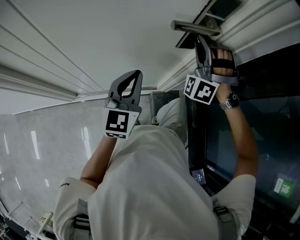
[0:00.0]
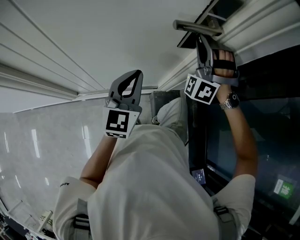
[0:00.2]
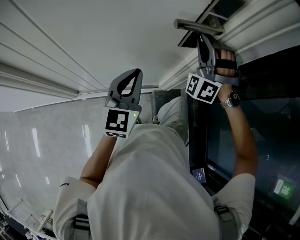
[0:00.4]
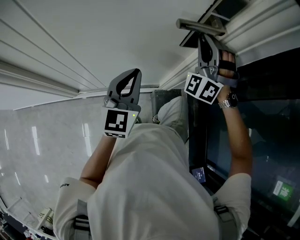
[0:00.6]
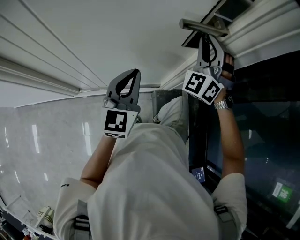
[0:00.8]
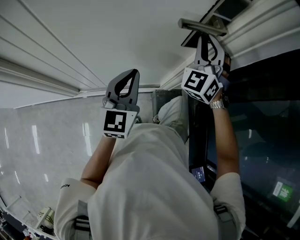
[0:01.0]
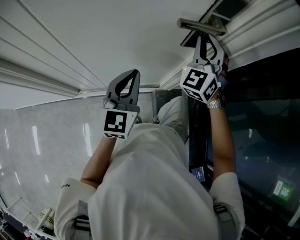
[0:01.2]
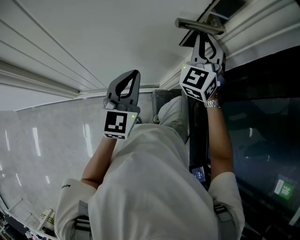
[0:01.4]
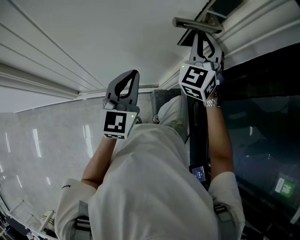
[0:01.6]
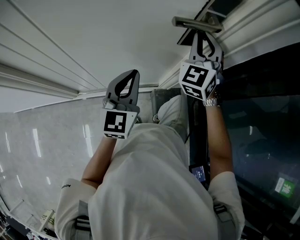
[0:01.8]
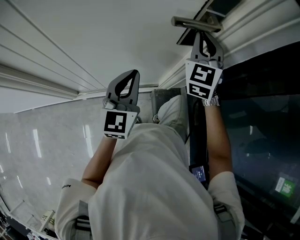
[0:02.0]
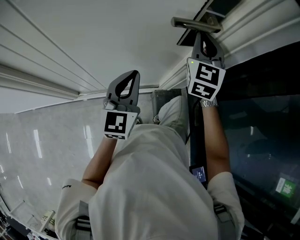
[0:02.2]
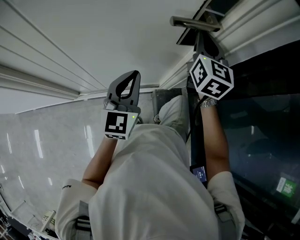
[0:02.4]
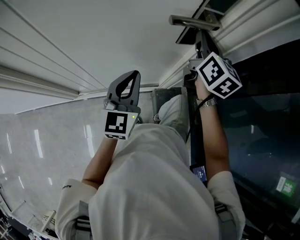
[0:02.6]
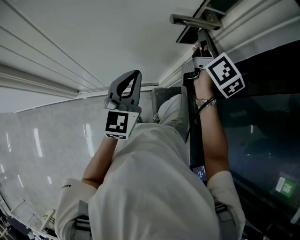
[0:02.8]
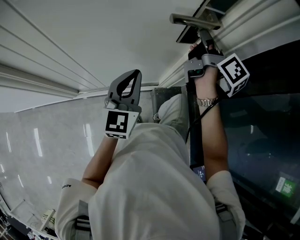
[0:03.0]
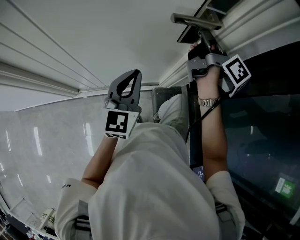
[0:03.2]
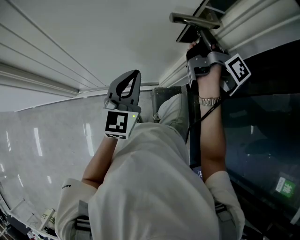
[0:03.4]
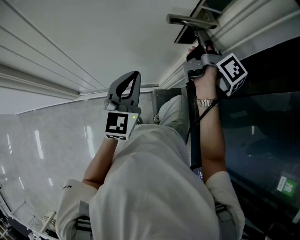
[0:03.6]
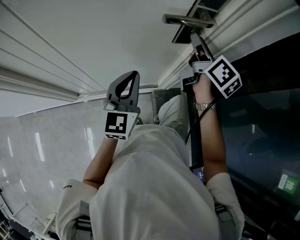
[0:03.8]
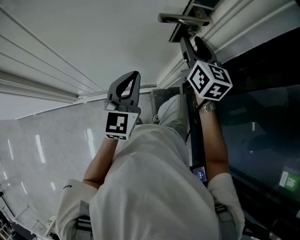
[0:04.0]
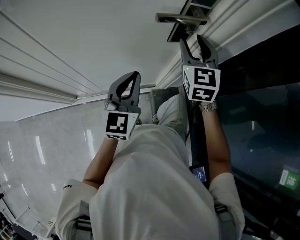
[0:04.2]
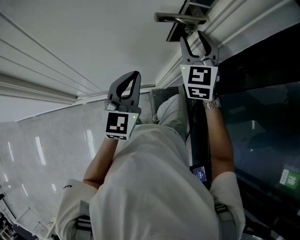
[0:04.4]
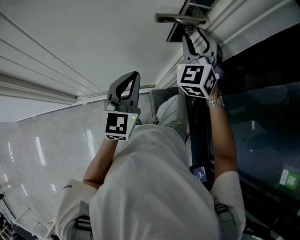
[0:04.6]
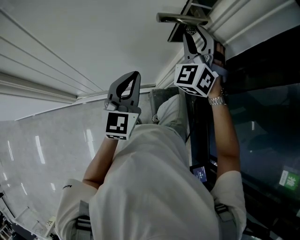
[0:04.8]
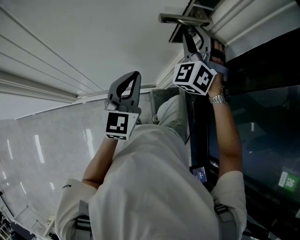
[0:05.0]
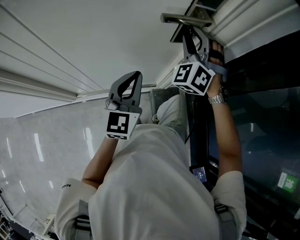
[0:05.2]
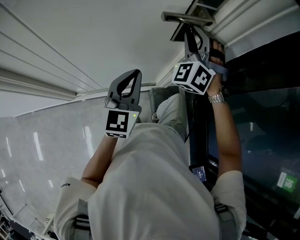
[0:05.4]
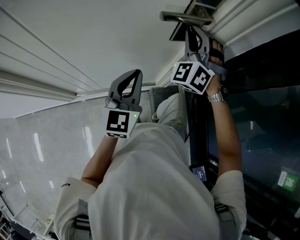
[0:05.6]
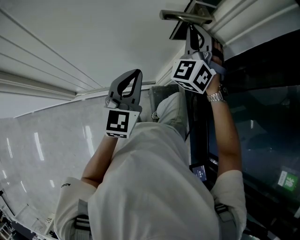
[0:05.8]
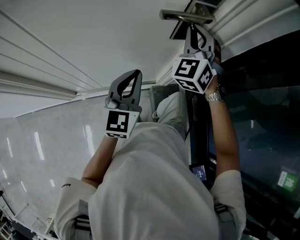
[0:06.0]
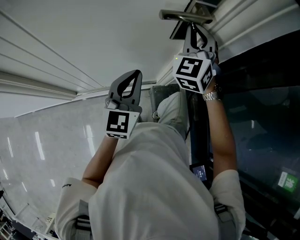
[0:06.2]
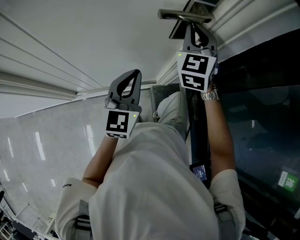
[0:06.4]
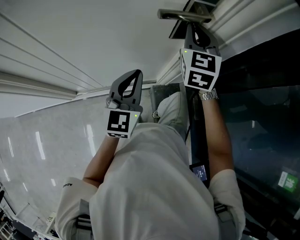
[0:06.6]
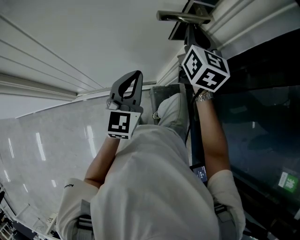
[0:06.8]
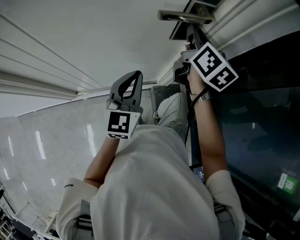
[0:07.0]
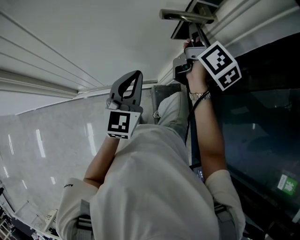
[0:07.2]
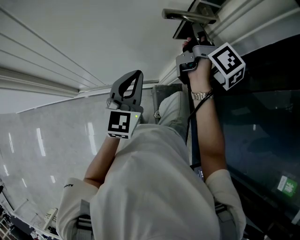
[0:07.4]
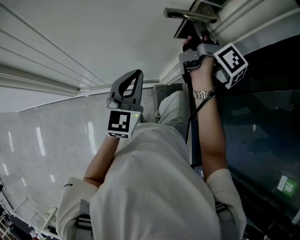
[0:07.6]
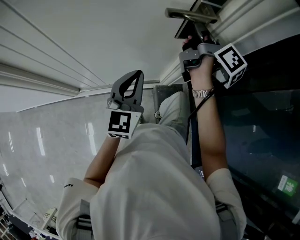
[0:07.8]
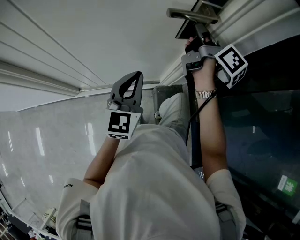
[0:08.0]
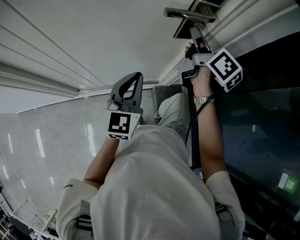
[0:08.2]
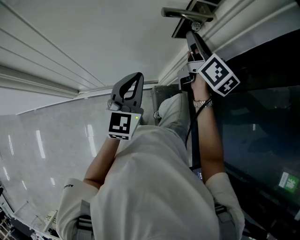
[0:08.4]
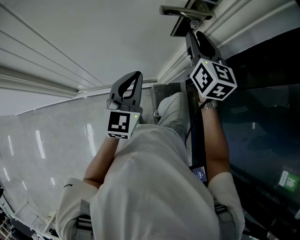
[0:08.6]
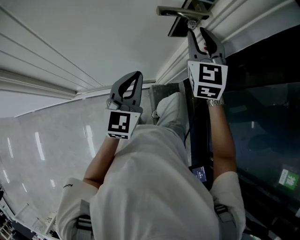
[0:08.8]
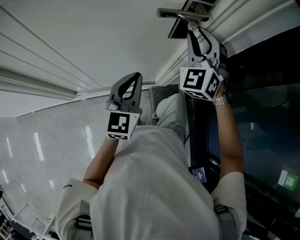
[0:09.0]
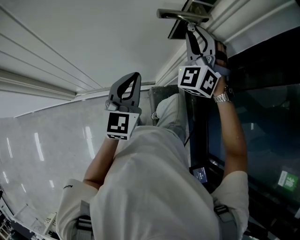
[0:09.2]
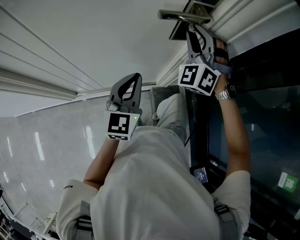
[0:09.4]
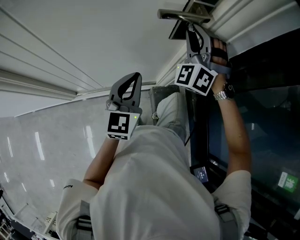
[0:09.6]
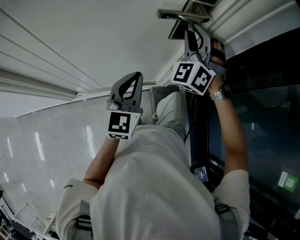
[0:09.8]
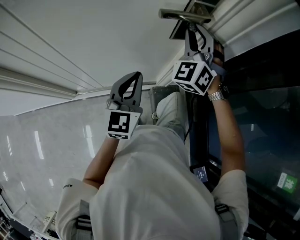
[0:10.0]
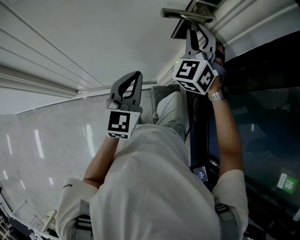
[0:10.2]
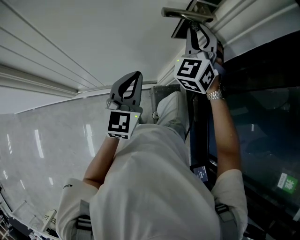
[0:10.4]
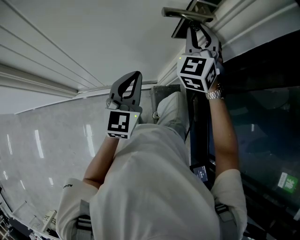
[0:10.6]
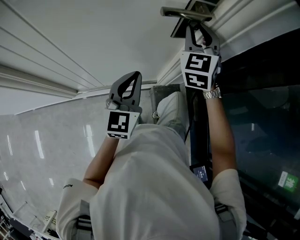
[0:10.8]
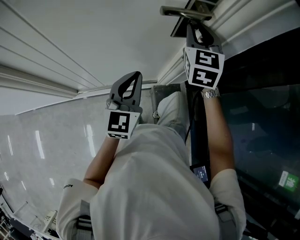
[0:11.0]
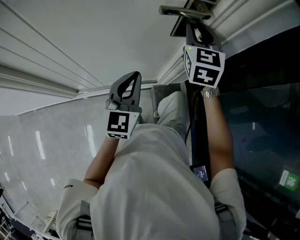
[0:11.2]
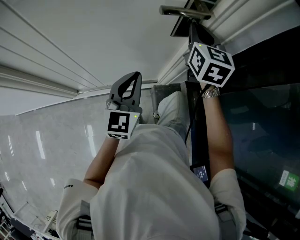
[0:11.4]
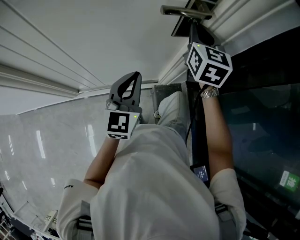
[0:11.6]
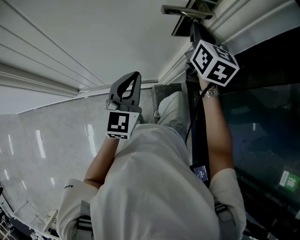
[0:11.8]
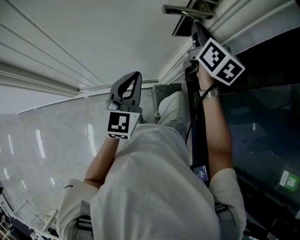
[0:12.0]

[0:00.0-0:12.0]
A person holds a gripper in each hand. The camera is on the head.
0:00.0 to 0:01.6: The right gripper rotates around the line of its fingers by roughly 50 degrees, clockwise from behind.
0:01.6 to 0:03.0: The right gripper rotates around the line of its fingers by roughly 100 degrees, clockwise from behind.
0:03.0 to 0:04.4: The right gripper rolls counterclockwise, seen from behind, by approximately 90 degrees, and opens its fingers.
0:04.4 to 0:06.0: The right gripper swivels approximately 20 degrees, and closes up.
0:06.0 to 0:07.6: The right gripper twists some 110 degrees clockwise, seen from behind.
0:07.6 to 0:09.0: The right gripper rotates around the line of its fingers by roughly 120 degrees, counterclockwise from behind.
0:09.0 to 0:10.4: The grippers move only a little.
0:10.4 to 0:12.0: The right gripper rotates around the line of its fingers by roughly 70 degrees, clockwise from behind.

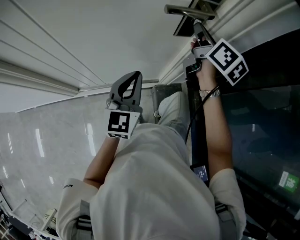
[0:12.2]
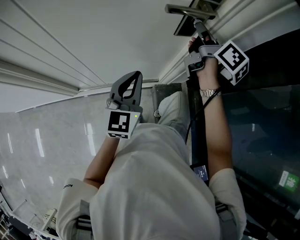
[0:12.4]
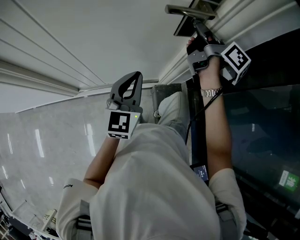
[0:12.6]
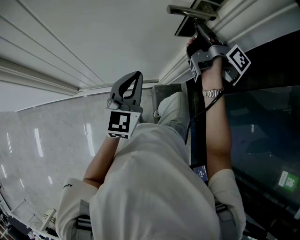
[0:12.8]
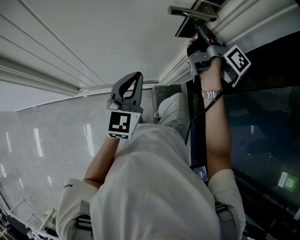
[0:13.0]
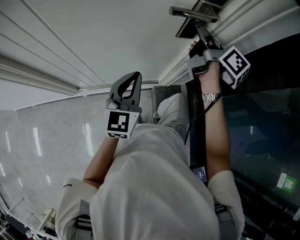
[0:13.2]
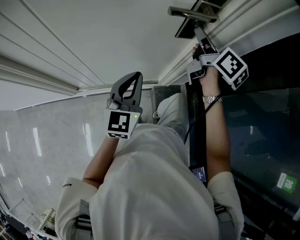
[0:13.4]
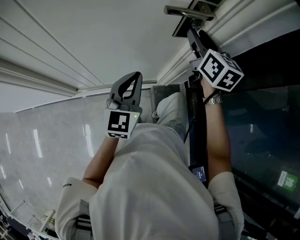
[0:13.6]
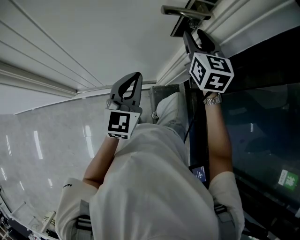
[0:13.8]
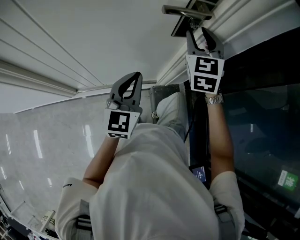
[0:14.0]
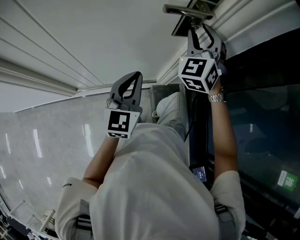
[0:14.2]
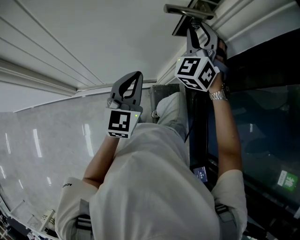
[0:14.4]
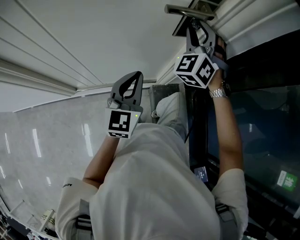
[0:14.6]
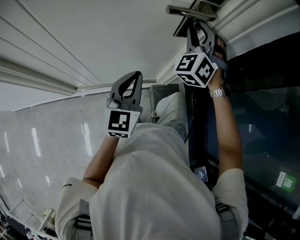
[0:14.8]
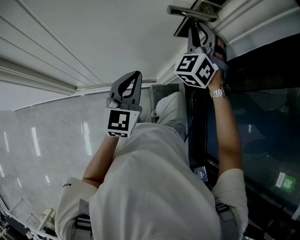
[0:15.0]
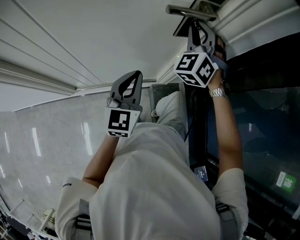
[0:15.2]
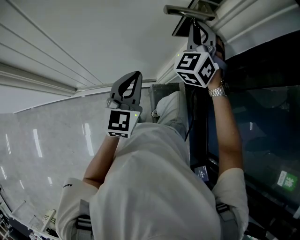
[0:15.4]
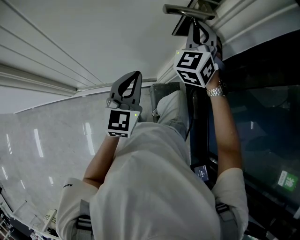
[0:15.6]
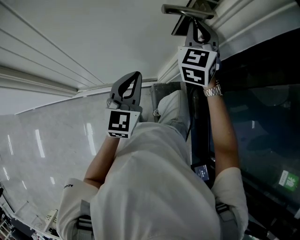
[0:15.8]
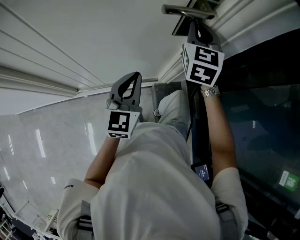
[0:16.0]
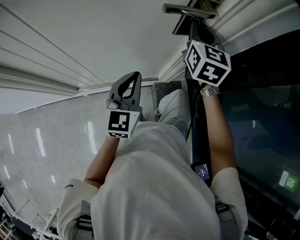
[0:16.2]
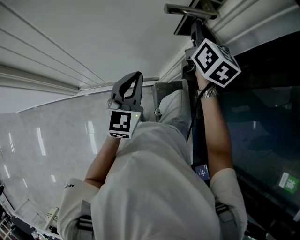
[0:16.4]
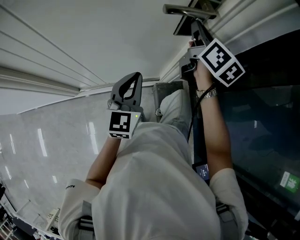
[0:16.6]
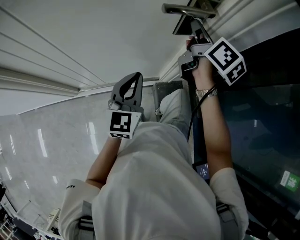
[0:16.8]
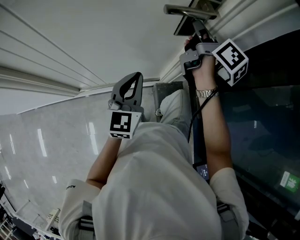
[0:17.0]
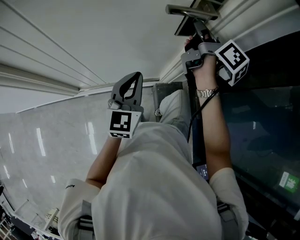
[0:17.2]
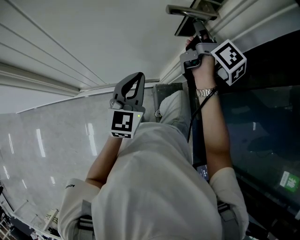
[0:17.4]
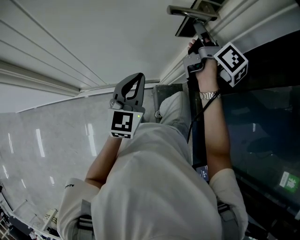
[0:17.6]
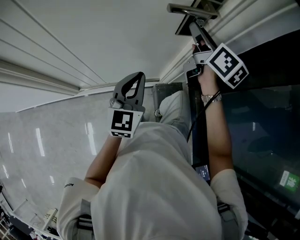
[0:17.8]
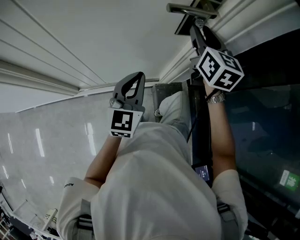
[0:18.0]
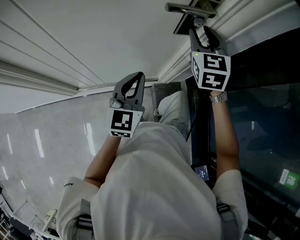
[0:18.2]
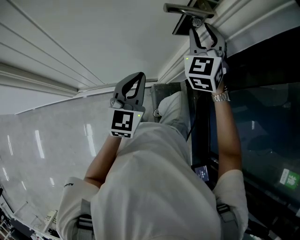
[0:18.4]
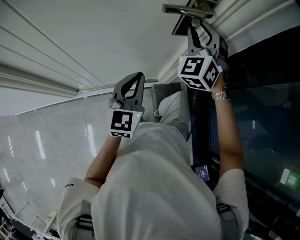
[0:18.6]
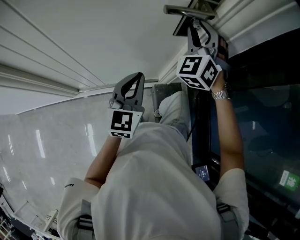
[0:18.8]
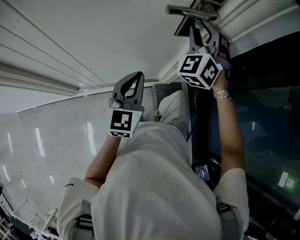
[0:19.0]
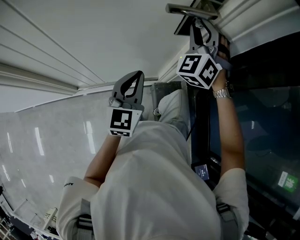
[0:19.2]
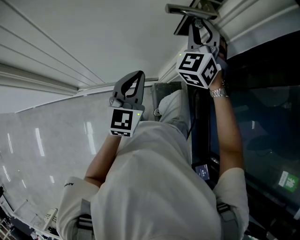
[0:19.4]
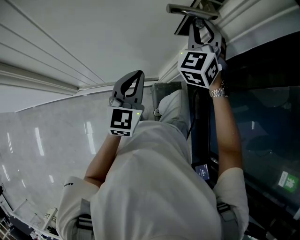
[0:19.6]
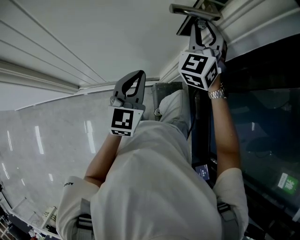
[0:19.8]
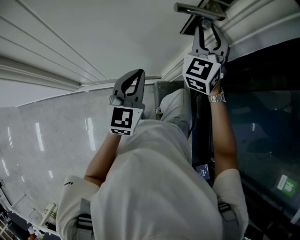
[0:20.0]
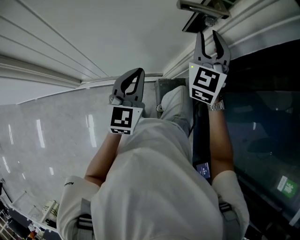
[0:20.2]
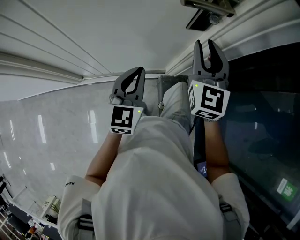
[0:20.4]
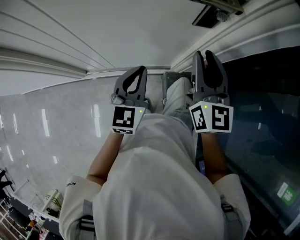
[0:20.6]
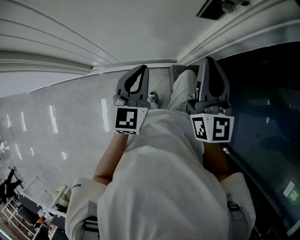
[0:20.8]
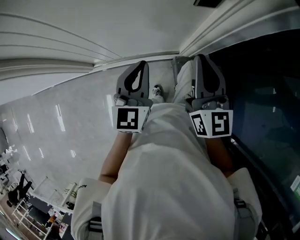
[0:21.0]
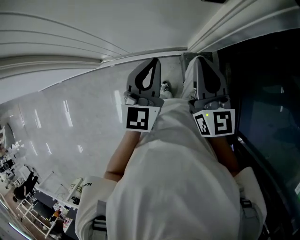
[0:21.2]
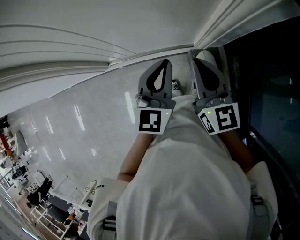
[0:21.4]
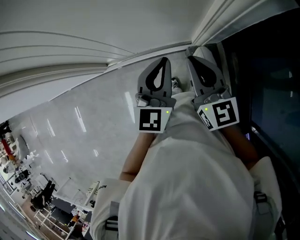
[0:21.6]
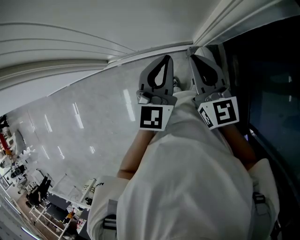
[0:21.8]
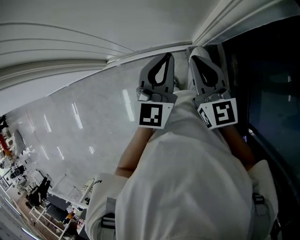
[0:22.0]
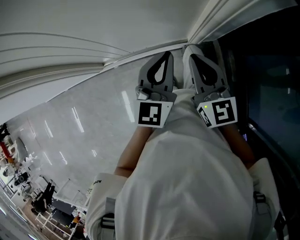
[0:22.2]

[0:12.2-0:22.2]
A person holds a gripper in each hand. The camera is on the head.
0:12.2 to 0:13.6: The right gripper rotates about 20 degrees, and opens up.
0:13.6 to 0:15.0: The right gripper twists approximately 70 degrees counterclockwise, seen from behind.
0:15.0 to 0:16.4: The right gripper rotates around the line of its fingers by roughly 80 degrees, clockwise from behind, and closes up.
0:16.4 to 0:18.0: The right gripper opens.
0:18.0 to 0:19.4: The right gripper rotates around the line of its fingers by approximately 60 degrees, counterclockwise from behind.
0:19.4 to 0:20.8: The right gripper heads backward, covering about 15 cm, rolls clockwise, seen from behind, by about 60 degrees, and closes its fingers; the left gripper shifts by approximately 5 cm.
0:20.8 to 0:22.2: The right gripper is displaced downward by some 10 cm, while the left gripper is displaced to the right by some 5 cm.

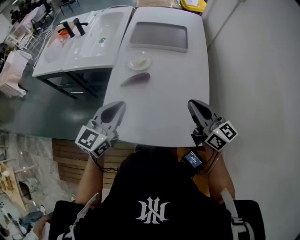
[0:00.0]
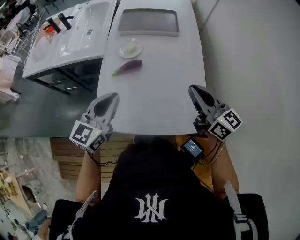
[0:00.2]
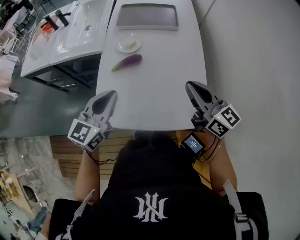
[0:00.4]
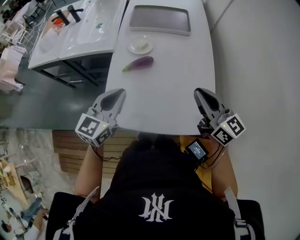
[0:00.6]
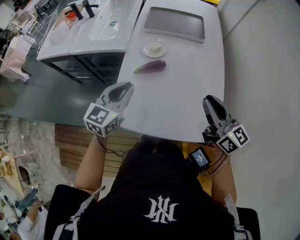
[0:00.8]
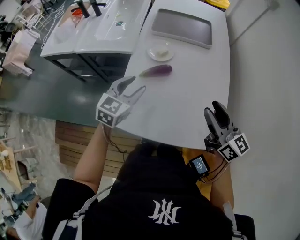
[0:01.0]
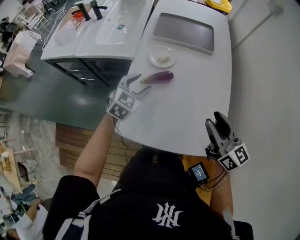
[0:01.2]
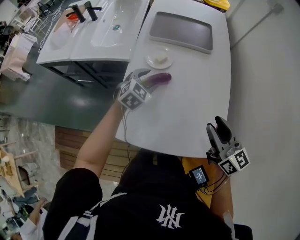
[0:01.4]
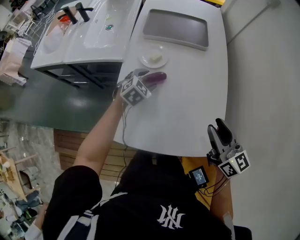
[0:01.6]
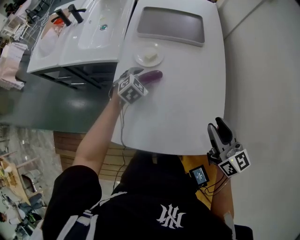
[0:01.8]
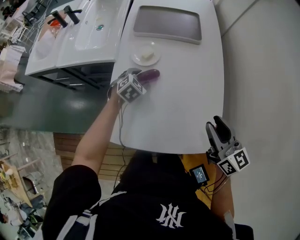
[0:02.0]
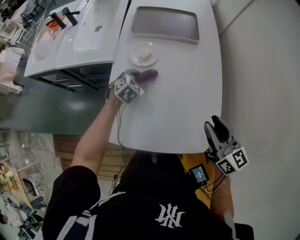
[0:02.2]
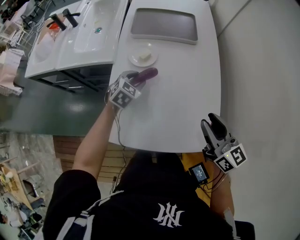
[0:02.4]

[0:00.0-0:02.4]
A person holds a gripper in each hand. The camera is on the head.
0:00.0 to 0:01.2: The right gripper opens. The left gripper travels forward and downward by about 20 cm, rotates approximately 40 degrees, and opens up.
0:01.2 to 0:02.4: The left gripper is displaced downward, forward and to the right by roughly 10 cm.
